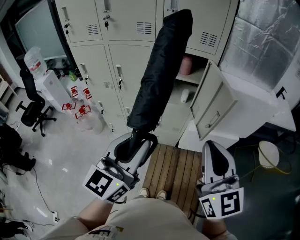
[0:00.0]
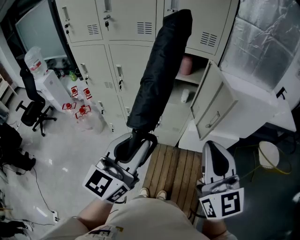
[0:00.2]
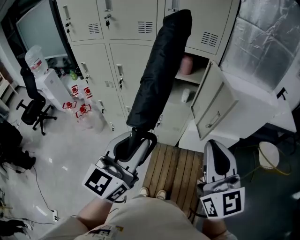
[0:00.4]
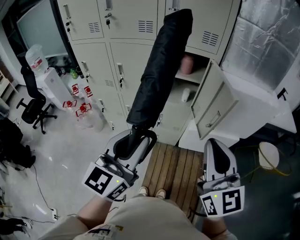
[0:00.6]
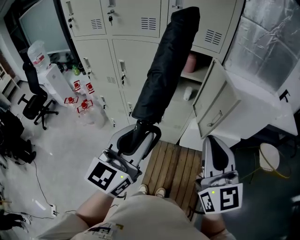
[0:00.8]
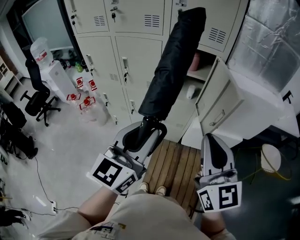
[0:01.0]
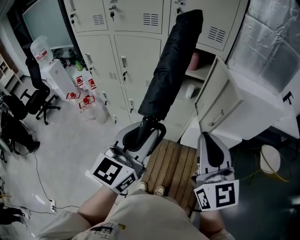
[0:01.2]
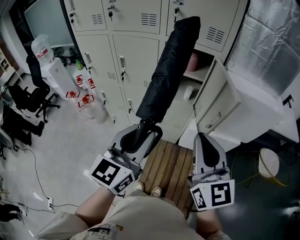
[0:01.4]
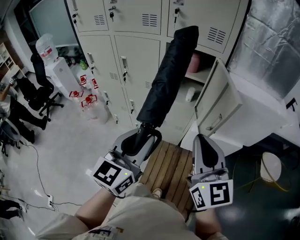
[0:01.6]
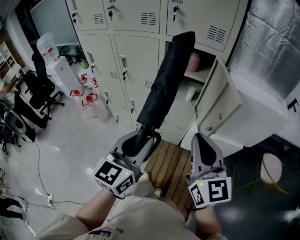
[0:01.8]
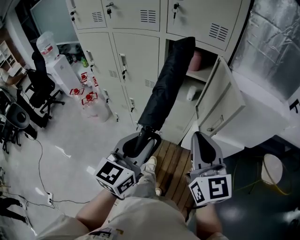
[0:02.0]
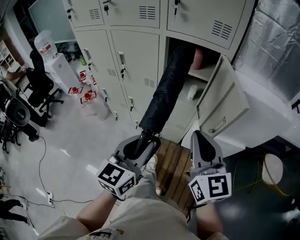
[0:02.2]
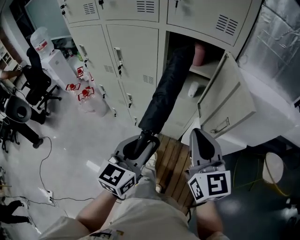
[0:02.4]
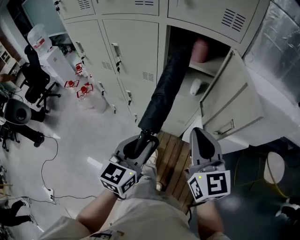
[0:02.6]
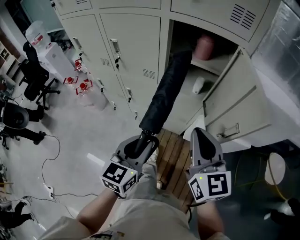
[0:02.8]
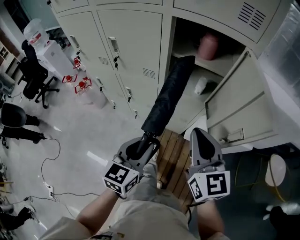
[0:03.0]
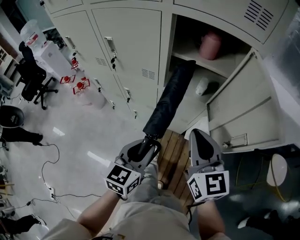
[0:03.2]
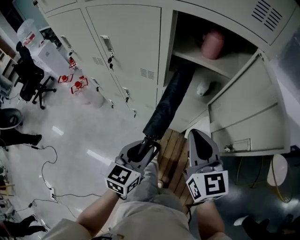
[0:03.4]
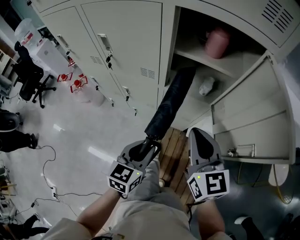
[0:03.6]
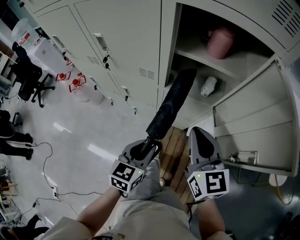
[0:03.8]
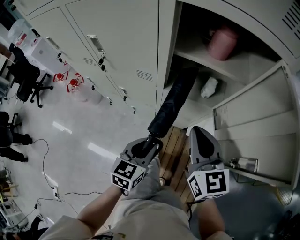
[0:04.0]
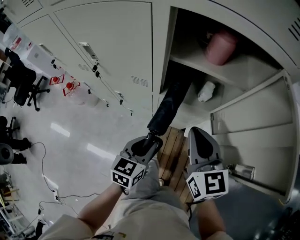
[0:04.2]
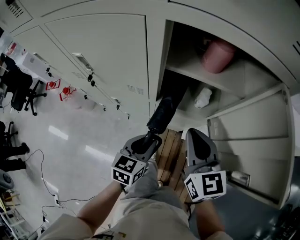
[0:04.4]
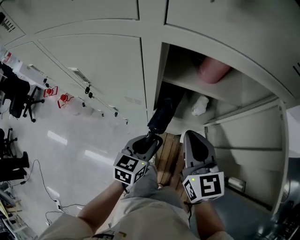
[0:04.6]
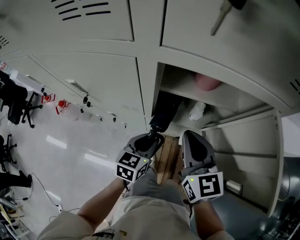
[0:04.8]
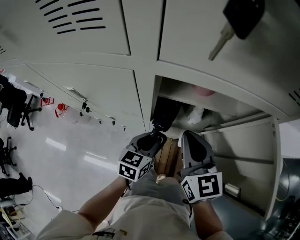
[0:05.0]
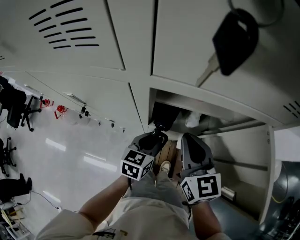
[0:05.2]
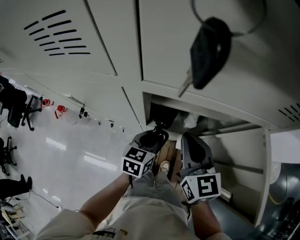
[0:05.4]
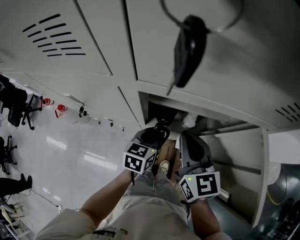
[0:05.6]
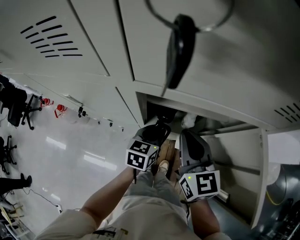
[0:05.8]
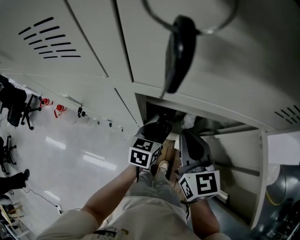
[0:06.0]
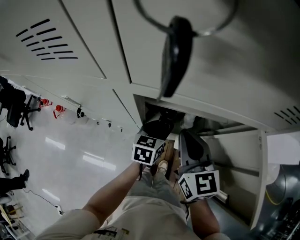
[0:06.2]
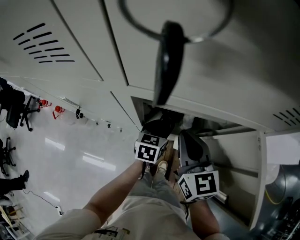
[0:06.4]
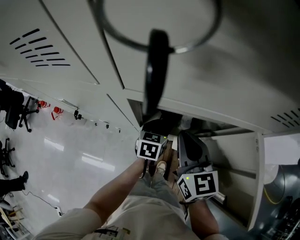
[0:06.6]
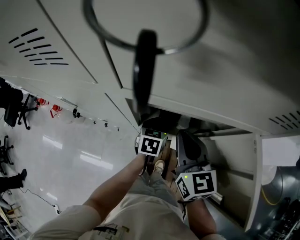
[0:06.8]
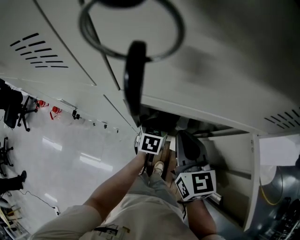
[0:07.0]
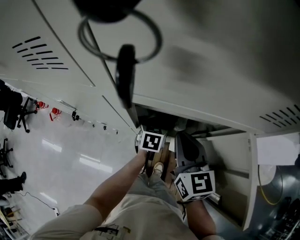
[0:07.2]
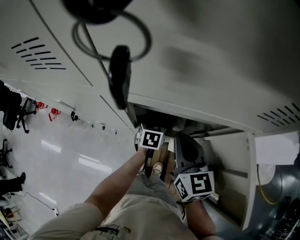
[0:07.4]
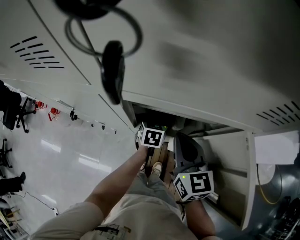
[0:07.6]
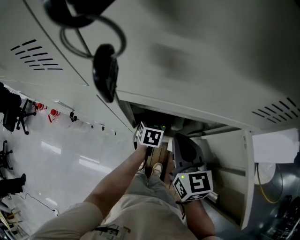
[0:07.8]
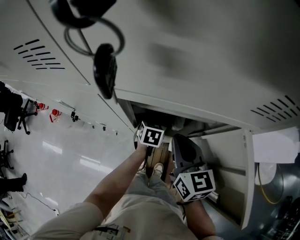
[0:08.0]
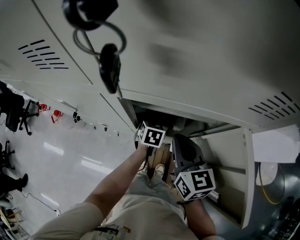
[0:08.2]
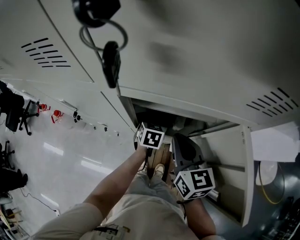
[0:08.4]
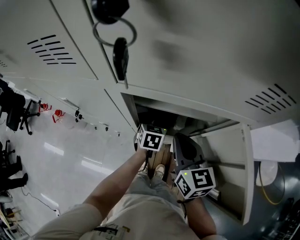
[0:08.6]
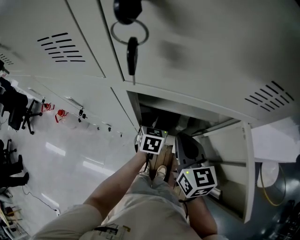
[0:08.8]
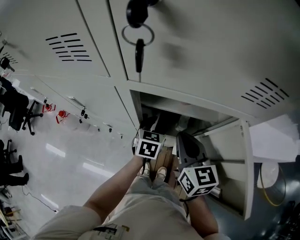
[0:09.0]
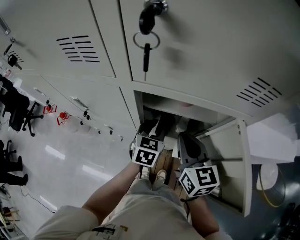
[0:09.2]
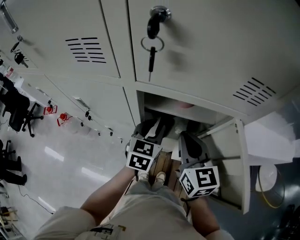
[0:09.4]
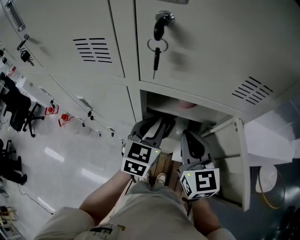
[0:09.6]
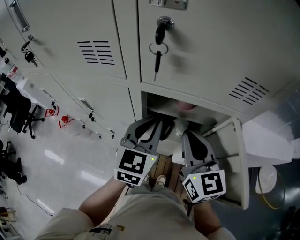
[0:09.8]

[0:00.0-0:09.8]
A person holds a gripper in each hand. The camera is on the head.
0.0 to 1.4 s: The left gripper ends up some 5 cm from where it was. Meanwhile the right gripper shifts by some 5 cm.
1.4 to 2.8 s: The left gripper travels downward and forward by roughly 20 cm, while the right gripper goes roughly 20 cm forward and downward.
2.8 to 4.2 s: The grippers both shift forward and downward by about 20 cm.
4.2 to 5.6 s: The right gripper goes approximately 15 cm forward and upward, while the left gripper goes approximately 20 cm forward.
5.6 to 7.0 s: The left gripper travels forward and downward by approximately 10 cm.
7.0 to 8.4 s: The grippers make only small movements.
8.4 to 9.8 s: The left gripper goes roughly 30 cm upward, changes its angle by some 30 degrees, and closes. The right gripper is displaced upward by some 10 cm.

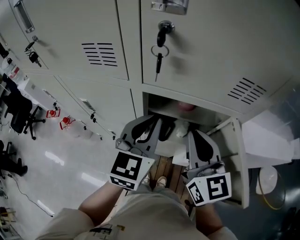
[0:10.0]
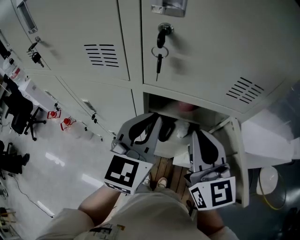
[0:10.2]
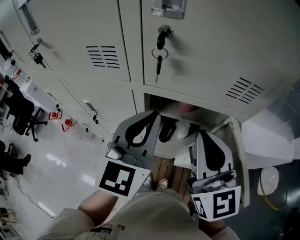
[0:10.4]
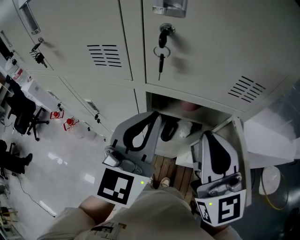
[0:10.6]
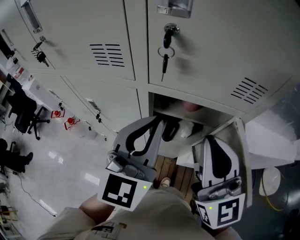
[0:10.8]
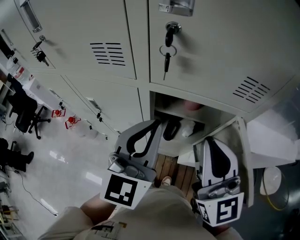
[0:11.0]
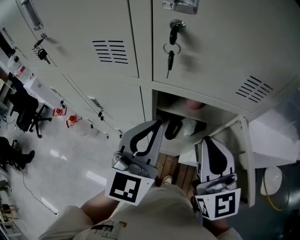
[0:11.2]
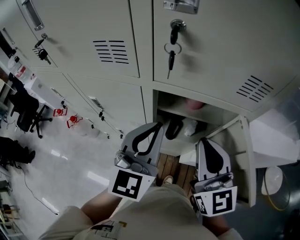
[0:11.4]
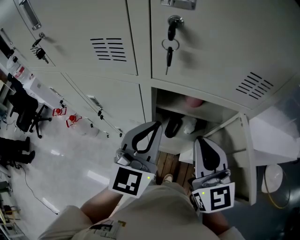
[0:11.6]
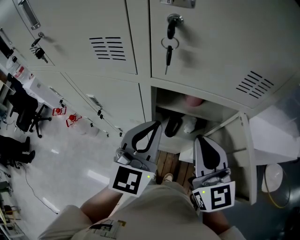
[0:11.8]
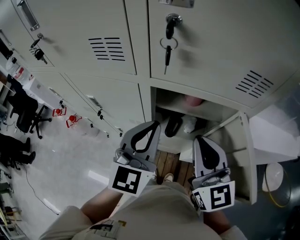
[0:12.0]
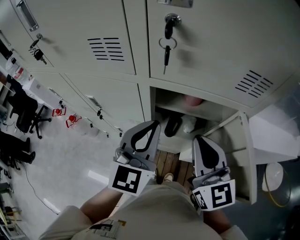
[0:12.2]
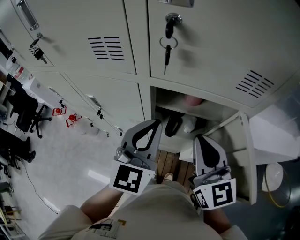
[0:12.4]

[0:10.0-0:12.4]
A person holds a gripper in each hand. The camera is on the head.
11.2 to 12.4 s: There are only small adjustments of the grippers.

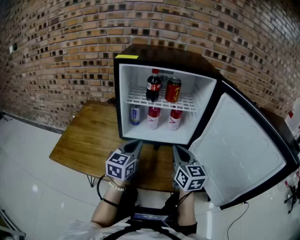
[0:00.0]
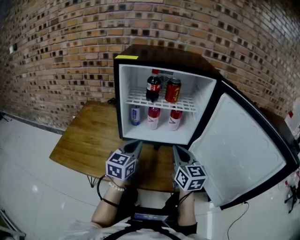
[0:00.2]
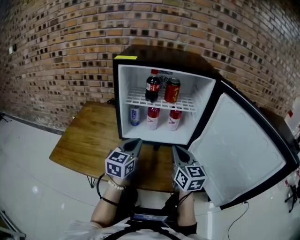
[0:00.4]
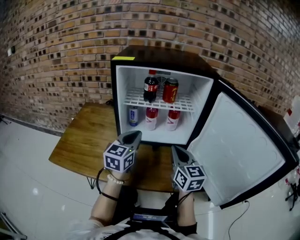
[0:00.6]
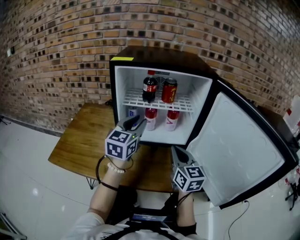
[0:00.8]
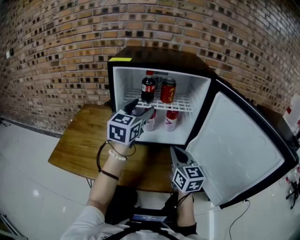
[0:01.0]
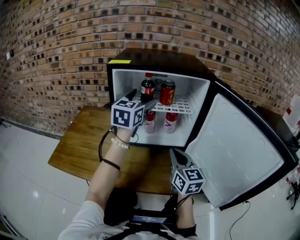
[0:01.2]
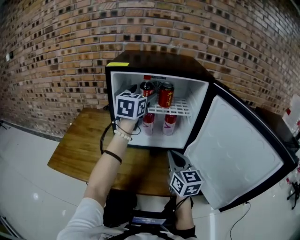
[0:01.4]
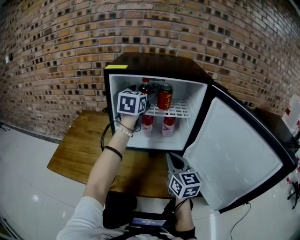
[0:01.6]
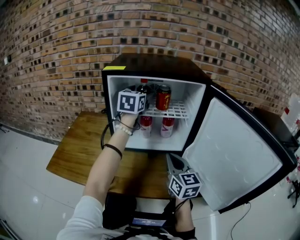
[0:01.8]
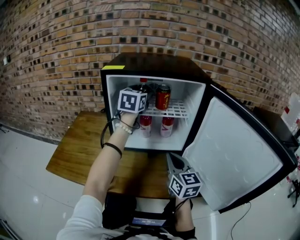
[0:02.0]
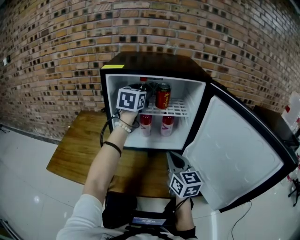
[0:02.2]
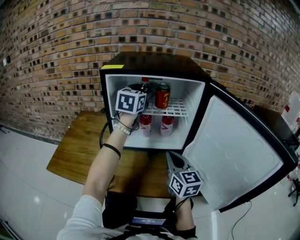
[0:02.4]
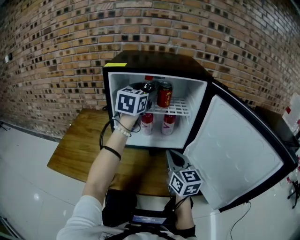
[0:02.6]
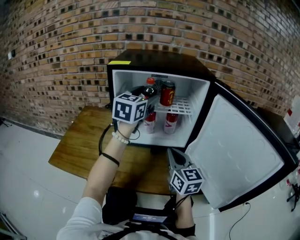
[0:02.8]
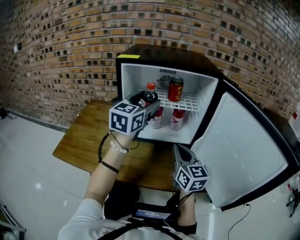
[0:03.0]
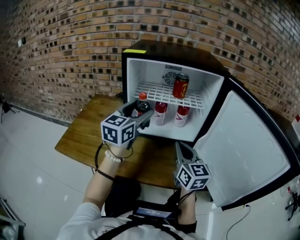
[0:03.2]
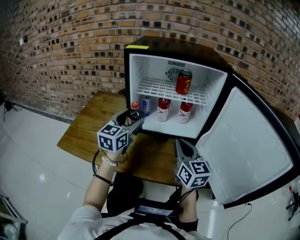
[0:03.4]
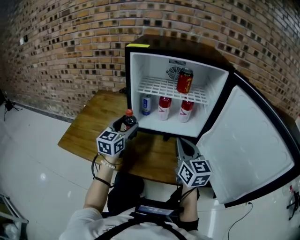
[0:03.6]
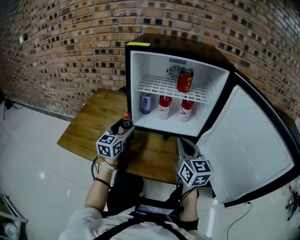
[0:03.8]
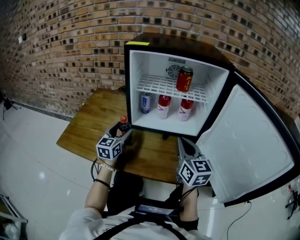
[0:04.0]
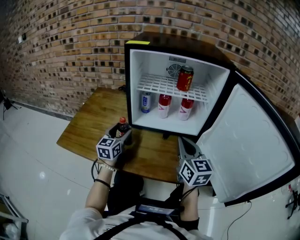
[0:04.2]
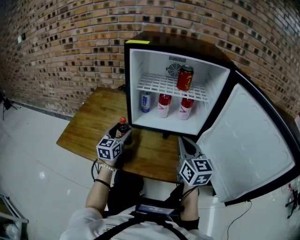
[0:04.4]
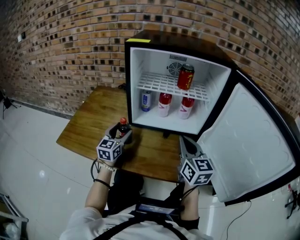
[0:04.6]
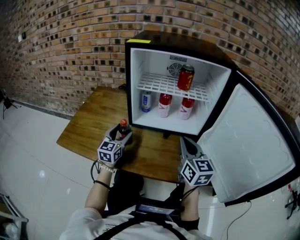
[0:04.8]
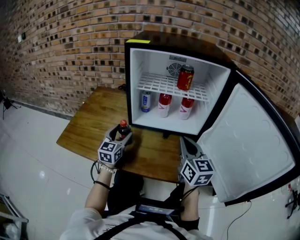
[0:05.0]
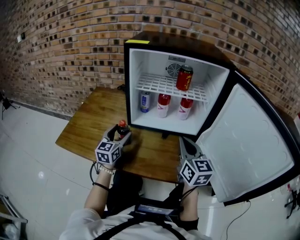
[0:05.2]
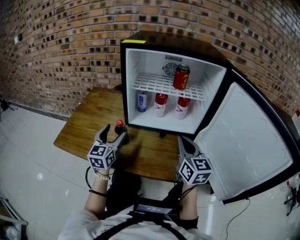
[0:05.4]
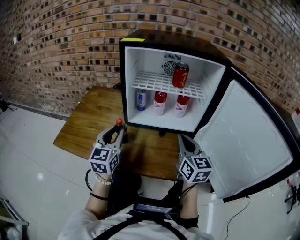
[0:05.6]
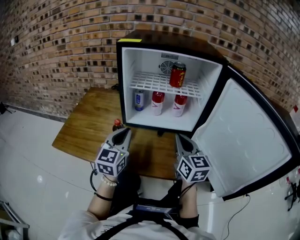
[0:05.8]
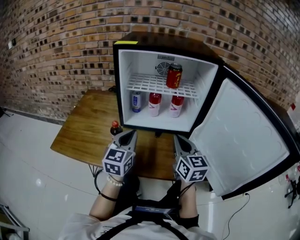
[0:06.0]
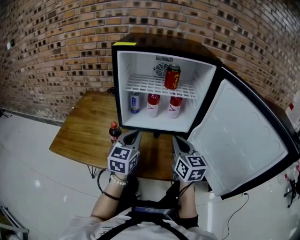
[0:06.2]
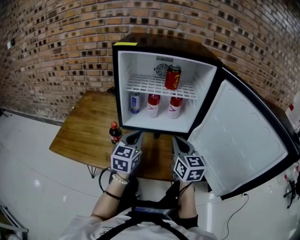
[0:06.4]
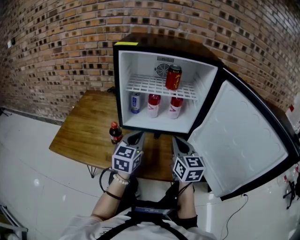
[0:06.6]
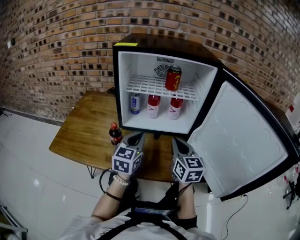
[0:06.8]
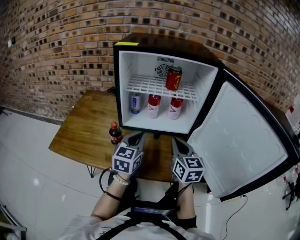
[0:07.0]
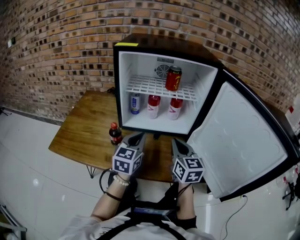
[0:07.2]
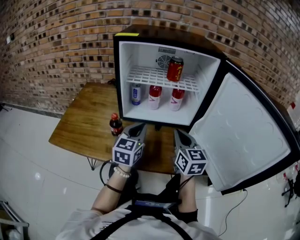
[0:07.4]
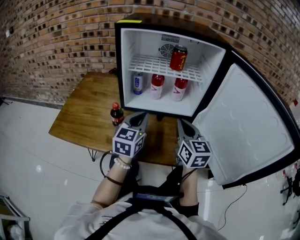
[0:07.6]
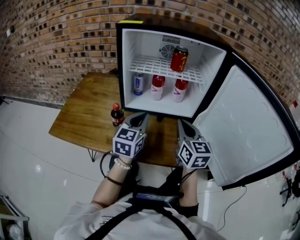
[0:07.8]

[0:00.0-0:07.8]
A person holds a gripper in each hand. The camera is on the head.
0.0 to 1.6 s: The left gripper heads upward and forward, covering approximately 25 cm, and opens its fingers.
1.6 to 3.2 s: The left gripper heads backward and downward, covering approximately 15 cm.
3.2 to 4.6 s: The left gripper moves downward and to the left, roughly 25 cm.
4.6 to 6.2 s: The left gripper shifts some 15 cm to the right, upward and backward, and closes.
6.2 to 7.8 s: The grippers make only small movements.

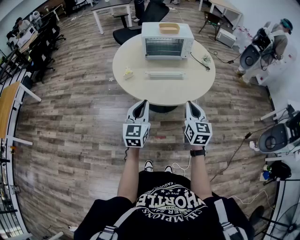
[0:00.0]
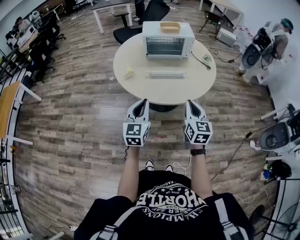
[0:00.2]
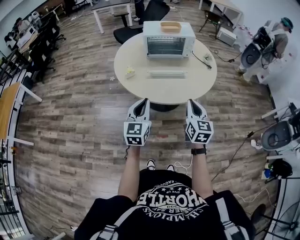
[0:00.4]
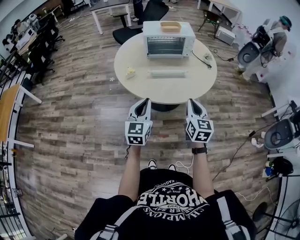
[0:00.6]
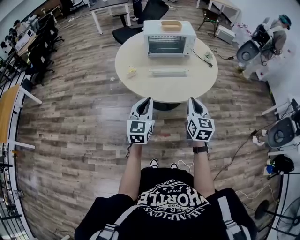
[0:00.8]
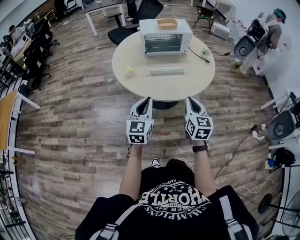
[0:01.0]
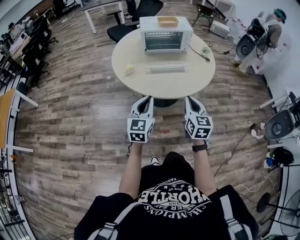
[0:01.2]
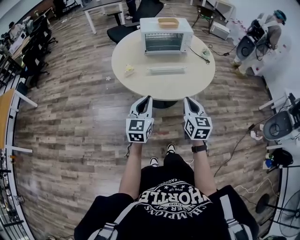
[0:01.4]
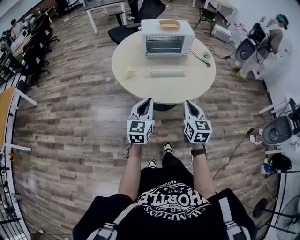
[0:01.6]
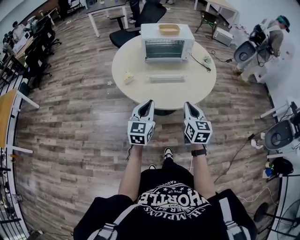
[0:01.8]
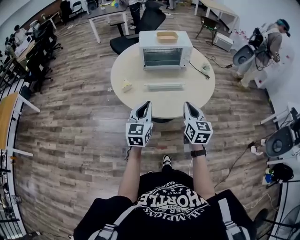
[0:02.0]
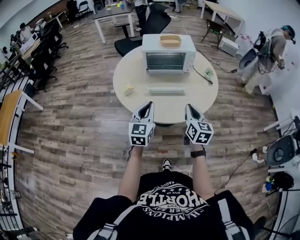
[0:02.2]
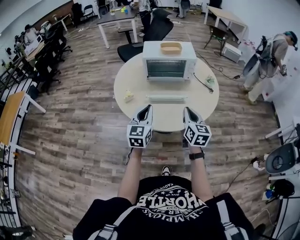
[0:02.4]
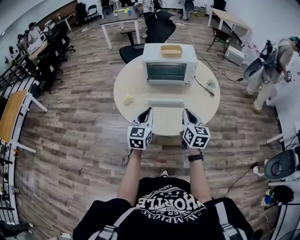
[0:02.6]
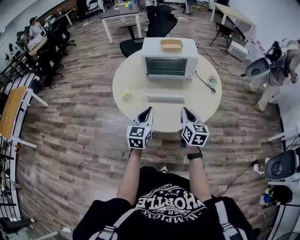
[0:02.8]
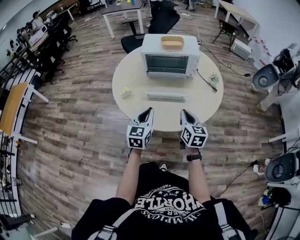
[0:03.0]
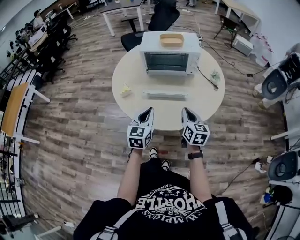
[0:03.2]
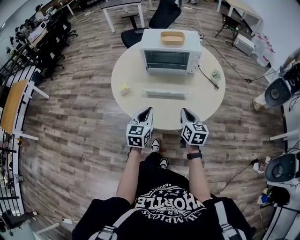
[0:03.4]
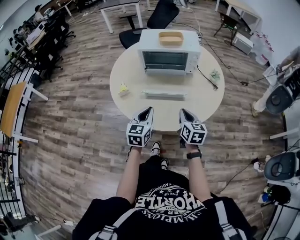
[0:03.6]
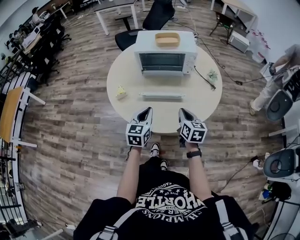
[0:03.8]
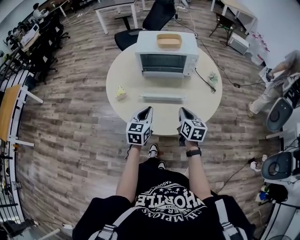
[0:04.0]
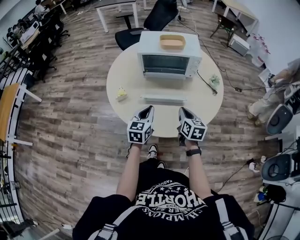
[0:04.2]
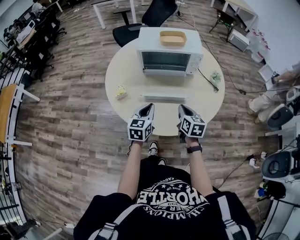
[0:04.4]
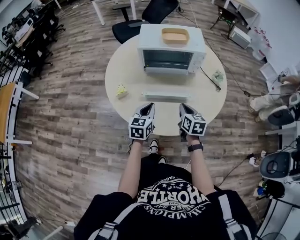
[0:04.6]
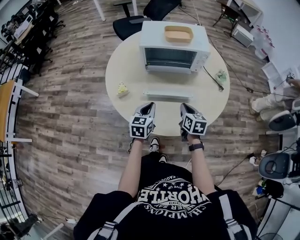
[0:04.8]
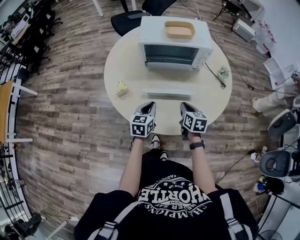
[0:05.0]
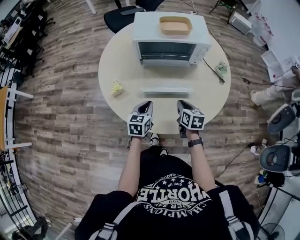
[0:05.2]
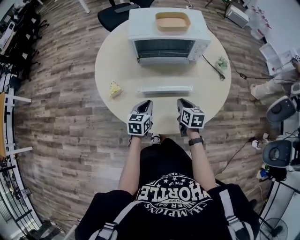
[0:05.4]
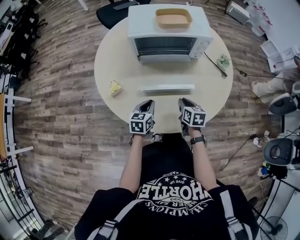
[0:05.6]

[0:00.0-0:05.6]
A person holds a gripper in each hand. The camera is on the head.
0.0 to 1.4 s: The right gripper heads to the left, covering some 5 cm.
1.4 to 2.8 s: Both grippers move forward and to the right, approximately 20 cm.
2.8 to 4.2 s: The two grippers go roughly 10 cm forward and downward.
4.2 to 5.6 s: Both grippers move downward and forward, approximately 15 cm.
